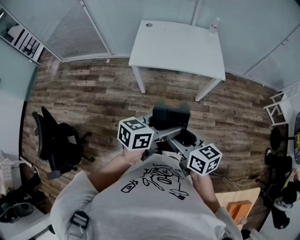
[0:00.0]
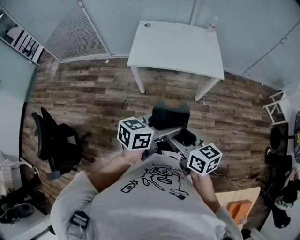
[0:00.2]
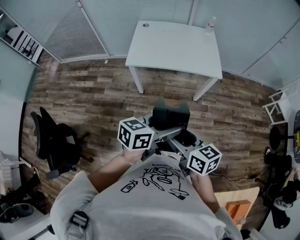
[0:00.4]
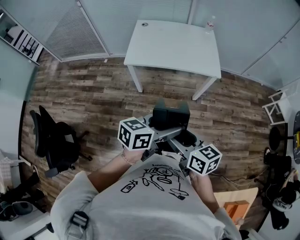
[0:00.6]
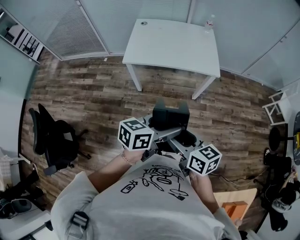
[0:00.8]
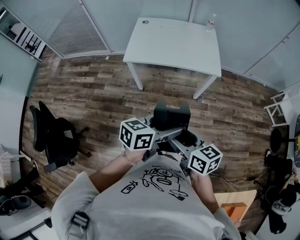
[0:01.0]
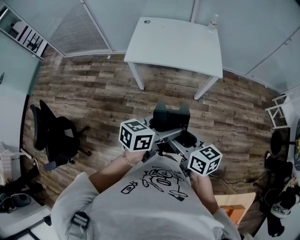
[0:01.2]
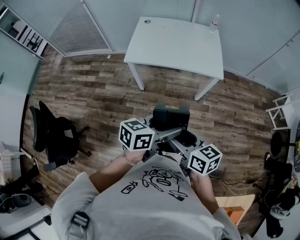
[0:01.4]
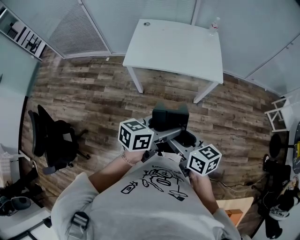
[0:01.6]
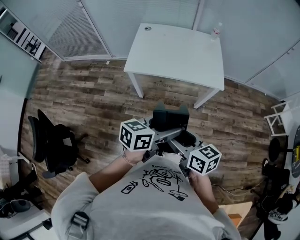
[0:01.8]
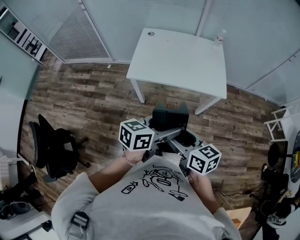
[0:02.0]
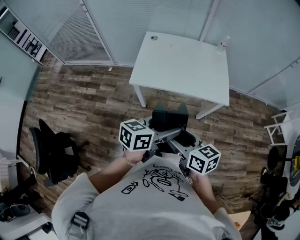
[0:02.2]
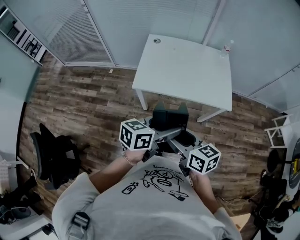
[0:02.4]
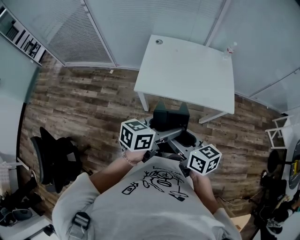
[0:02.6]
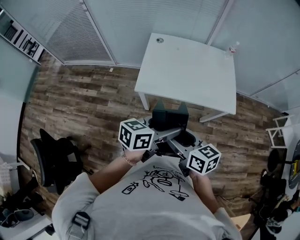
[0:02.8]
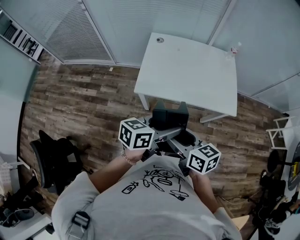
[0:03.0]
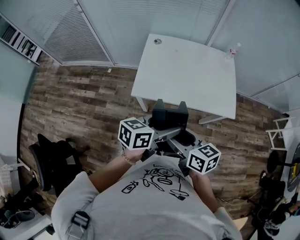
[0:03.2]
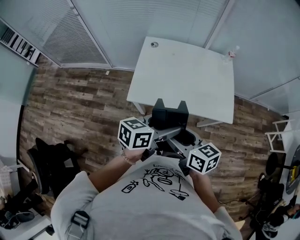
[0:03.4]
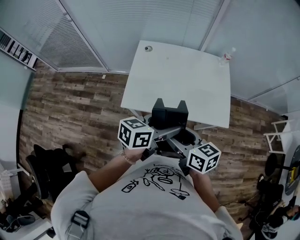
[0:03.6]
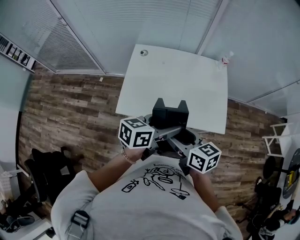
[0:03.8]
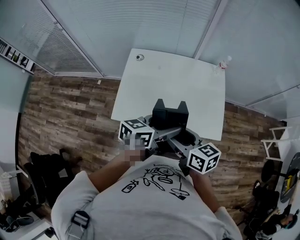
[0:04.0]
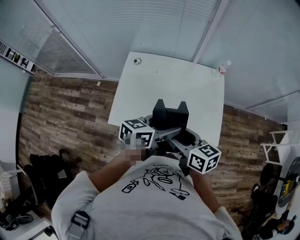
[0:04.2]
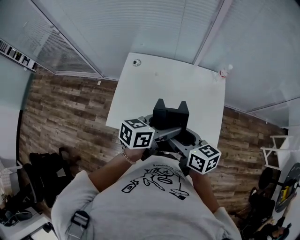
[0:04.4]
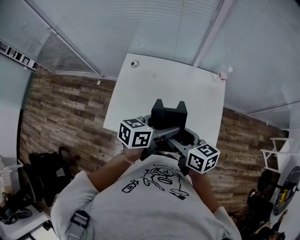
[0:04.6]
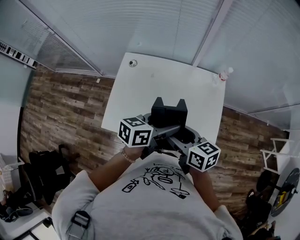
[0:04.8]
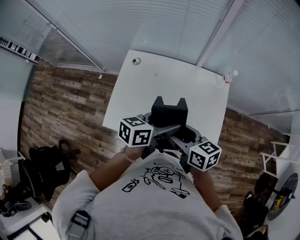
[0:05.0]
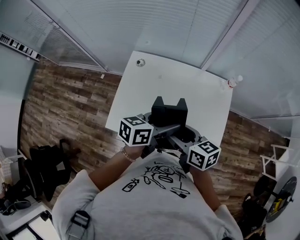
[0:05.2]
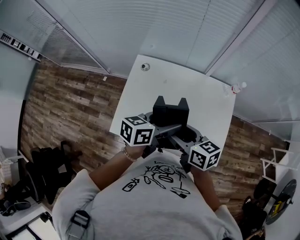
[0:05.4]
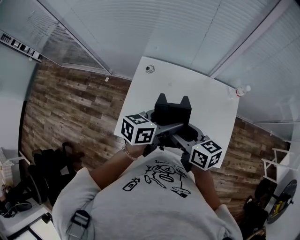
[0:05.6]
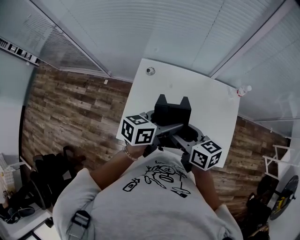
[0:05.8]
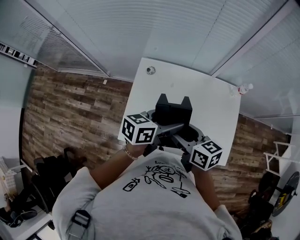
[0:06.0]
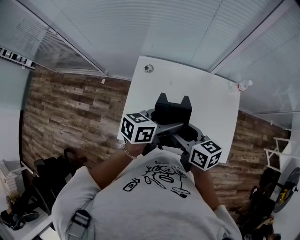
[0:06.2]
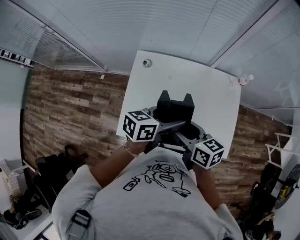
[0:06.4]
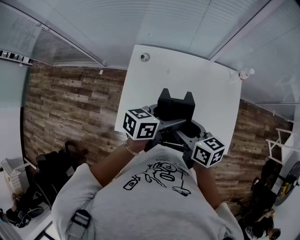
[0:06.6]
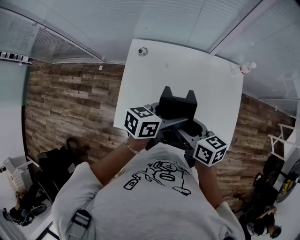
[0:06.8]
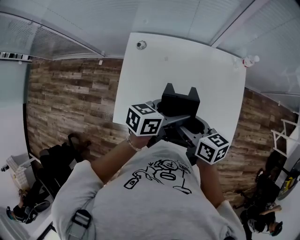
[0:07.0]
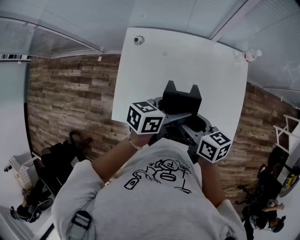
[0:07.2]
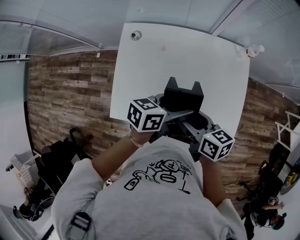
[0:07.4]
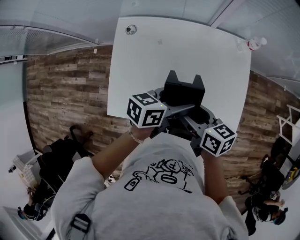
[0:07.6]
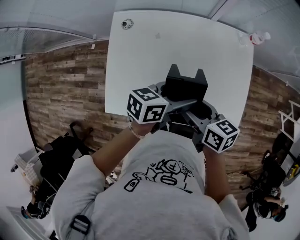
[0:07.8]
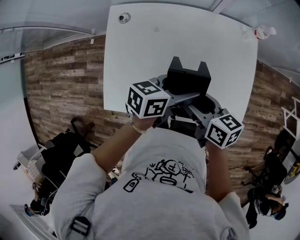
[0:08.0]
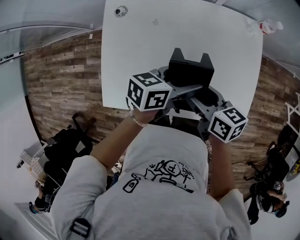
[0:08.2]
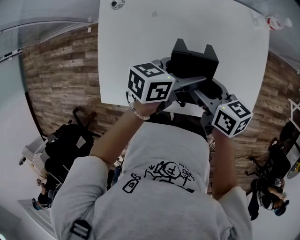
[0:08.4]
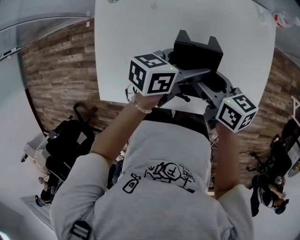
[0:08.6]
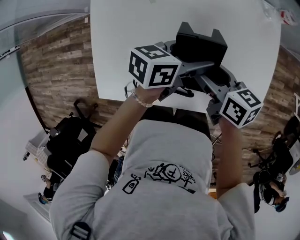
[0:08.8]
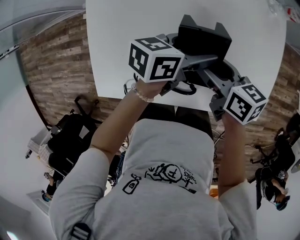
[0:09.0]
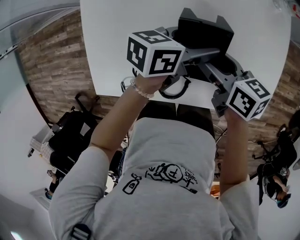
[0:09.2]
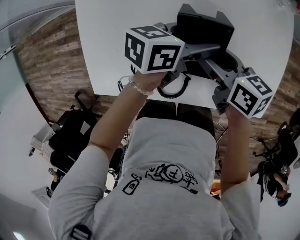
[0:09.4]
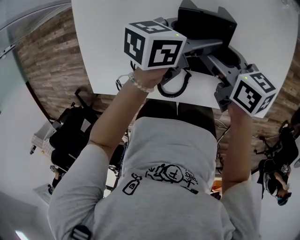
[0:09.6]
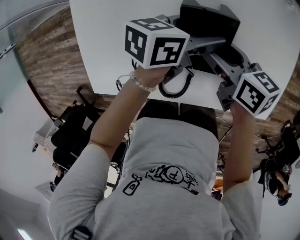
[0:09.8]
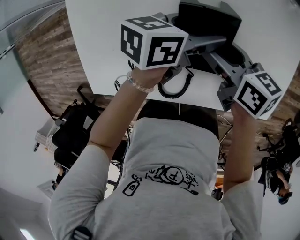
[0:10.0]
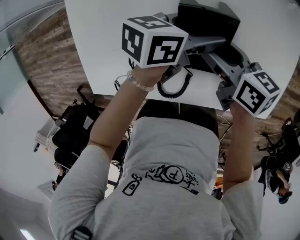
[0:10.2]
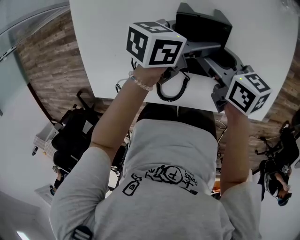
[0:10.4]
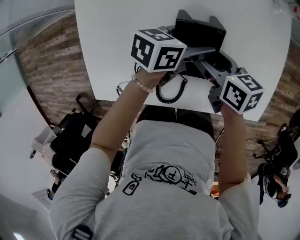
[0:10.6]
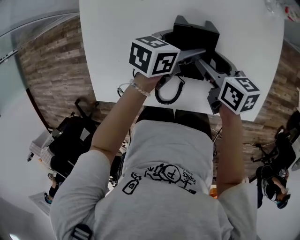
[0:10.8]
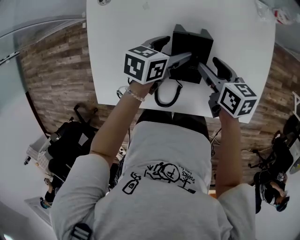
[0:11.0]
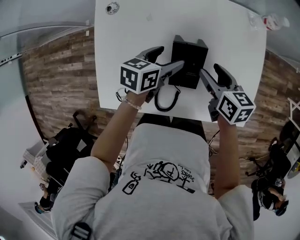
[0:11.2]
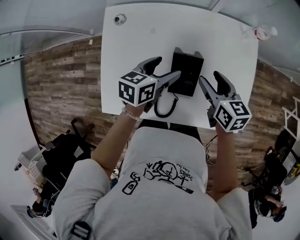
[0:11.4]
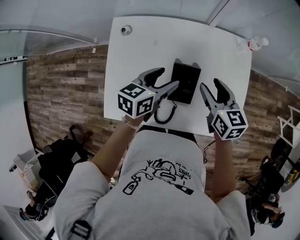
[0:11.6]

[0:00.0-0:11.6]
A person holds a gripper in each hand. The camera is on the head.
0:00.0 to 0:01.4: Both grippers travel together to the right, about 5 cm.
0:01.4 to 0:02.8: Both grippers travel together forward and to the left, approximately 30 cm.
0:02.8 to 0:04.4: The two grippers go some 35 cm forward and to the right.
0:04.4 to 0:05.8: The grippers both shift forward and to the left by some 15 cm.
0:05.8 to 0:07.2: The grippers both shift downward and to the right by about 10 cm.
0:07.2 to 0:08.8: The grippers both shift downward and forward by about 20 cm.
0:08.8 to 0:10.2: Both grippers move downward, roughly 10 cm.
0:10.2 to 0:11.6: Both grippers travel together upward, about 15 cm. The right gripper turns by about 30 degrees, while the left gripper turns by some 30 degrees.

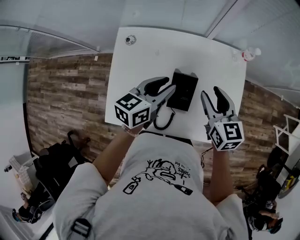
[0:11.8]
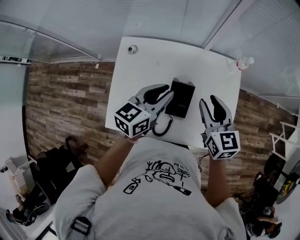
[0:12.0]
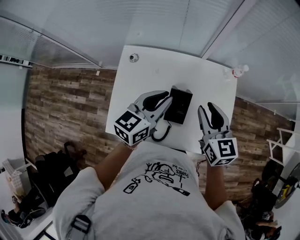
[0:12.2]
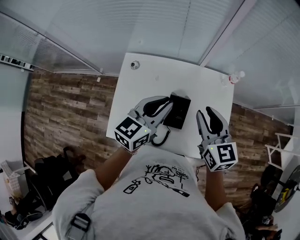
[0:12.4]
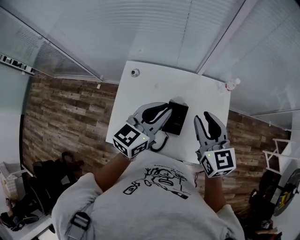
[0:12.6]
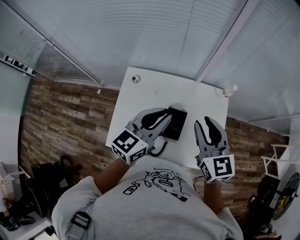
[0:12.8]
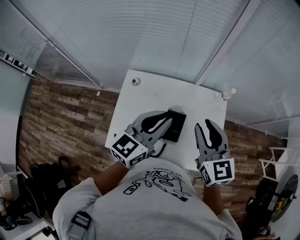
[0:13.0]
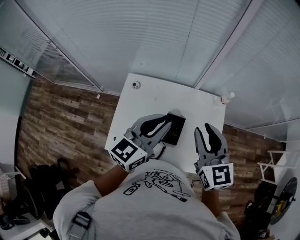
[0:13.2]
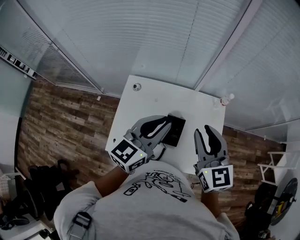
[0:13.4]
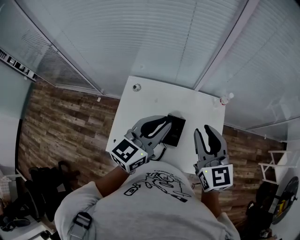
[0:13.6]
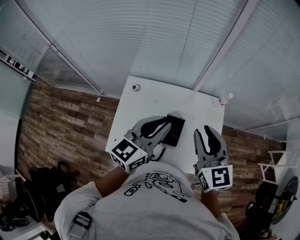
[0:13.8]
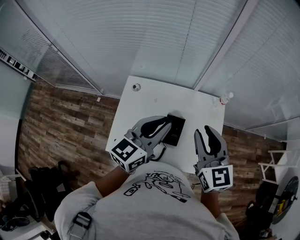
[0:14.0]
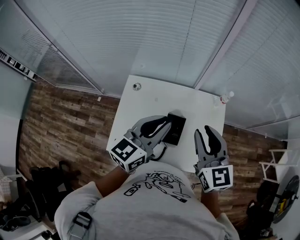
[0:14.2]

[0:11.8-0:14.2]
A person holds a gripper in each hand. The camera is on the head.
0:11.8 to 0:13.0: Both grippers travel together upward, roughly 20 cm. The left gripper turns by roughly 20 degrees.
0:13.0 to 0:14.2: The grippers move only a little.

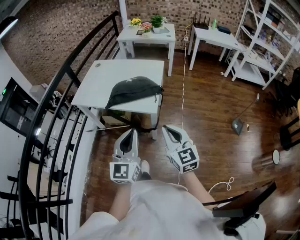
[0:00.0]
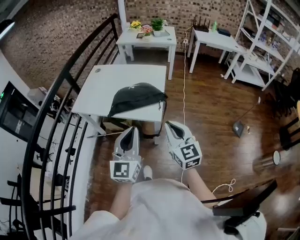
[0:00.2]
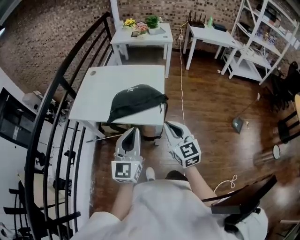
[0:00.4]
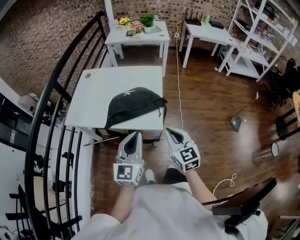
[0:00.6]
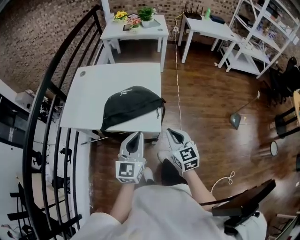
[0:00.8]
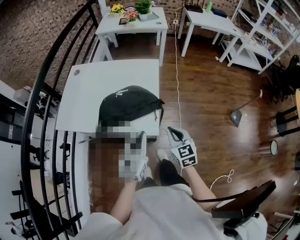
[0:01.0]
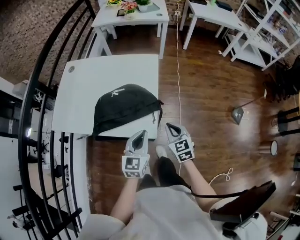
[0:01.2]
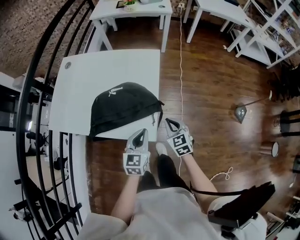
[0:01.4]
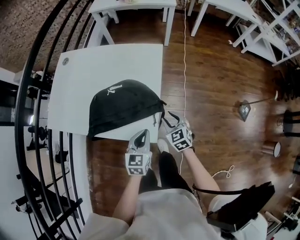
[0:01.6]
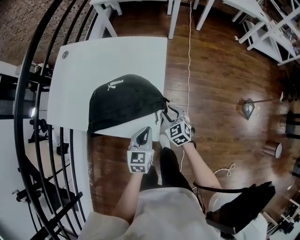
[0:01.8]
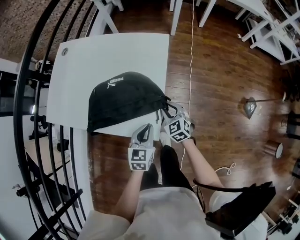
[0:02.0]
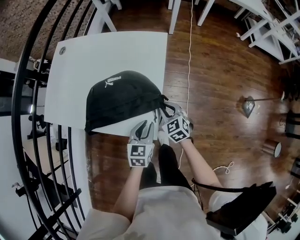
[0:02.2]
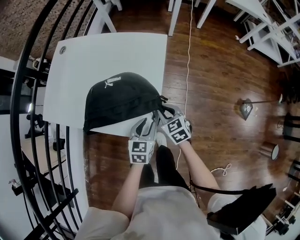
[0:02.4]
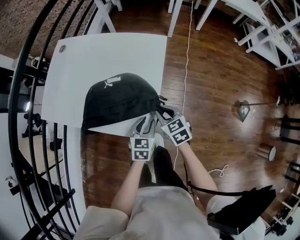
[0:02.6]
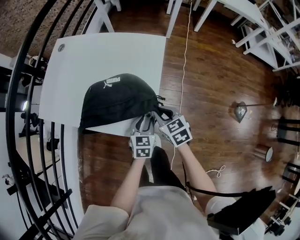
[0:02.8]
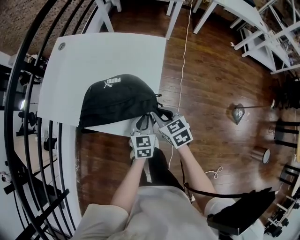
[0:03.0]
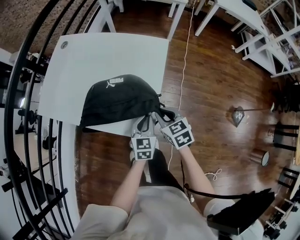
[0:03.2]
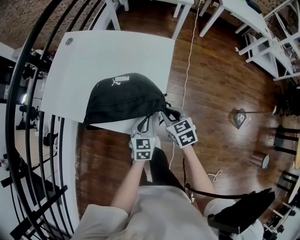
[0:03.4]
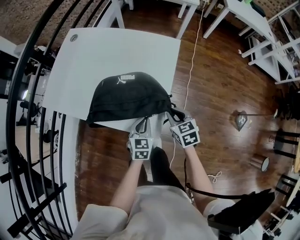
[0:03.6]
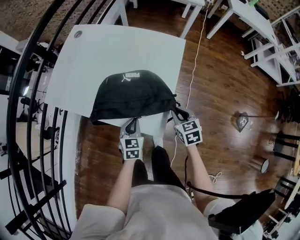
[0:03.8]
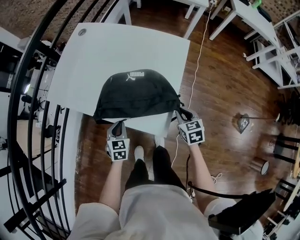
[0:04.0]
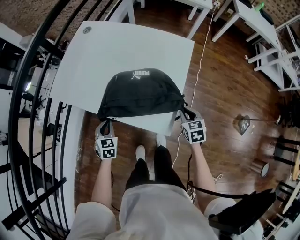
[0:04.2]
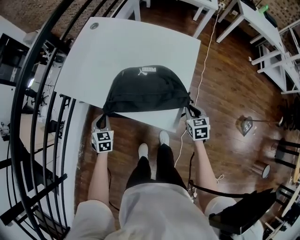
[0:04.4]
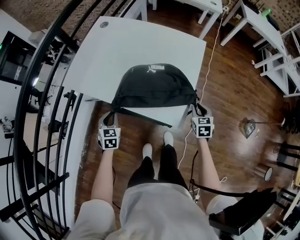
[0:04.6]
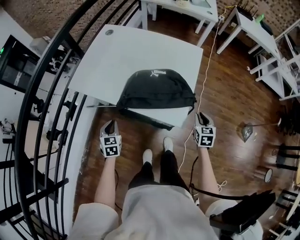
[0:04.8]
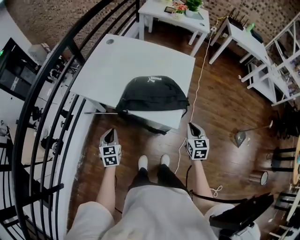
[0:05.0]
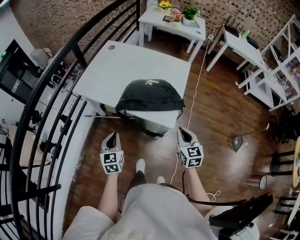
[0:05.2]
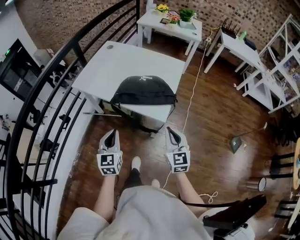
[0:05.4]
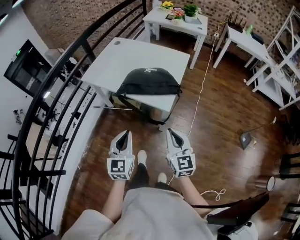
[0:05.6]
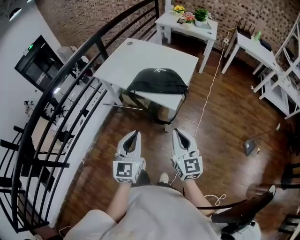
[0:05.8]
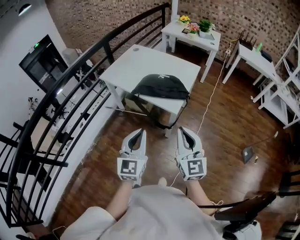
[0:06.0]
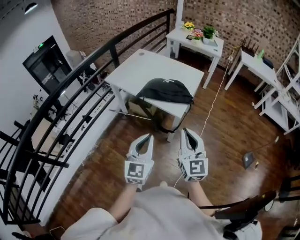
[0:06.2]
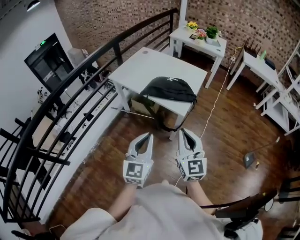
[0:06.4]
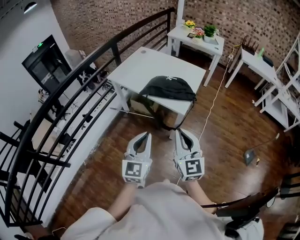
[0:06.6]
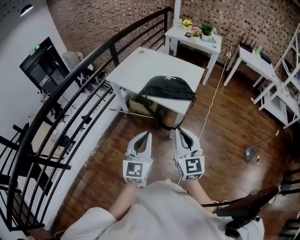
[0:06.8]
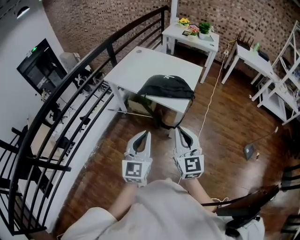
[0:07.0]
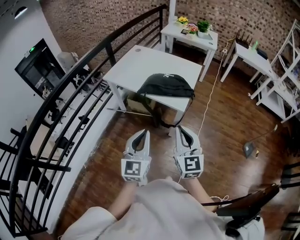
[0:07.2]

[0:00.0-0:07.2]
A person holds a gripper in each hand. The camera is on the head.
0:00.0 to 0:01.4: The grippers both shift forward and downward by approximately 40 cm. The left gripper rotates approximately 30 degrees; the right gripper turns by approximately 30 degrees.
0:01.4 to 0:02.8: The right gripper moves forward, some 5 cm, and goes downward and returns, some 10 cm each way. Meanwhile the left gripper goes about 10 cm downward and forward, and opens its fingers.
0:02.8 to 0:04.4: The left gripper moves to the left, about 35 cm, swivels approximately 30 degrees, and closes its fingers, while the right gripper moves about 5 cm.
0:04.4 to 0:05.8: The right gripper travels backward and upward by approximately 50 cm, and angles its fingers upward, by roughly 40 degrees. The left gripper travels backward, upward and to the right by about 50 cm, and tips its fingers upward by approximately 40 degrees.
0:05.8 to 0:07.2: The two grippers go about 5 cm to the left.

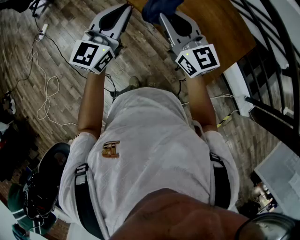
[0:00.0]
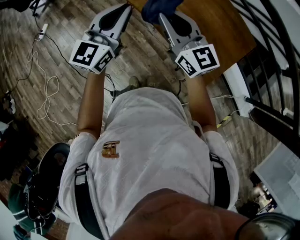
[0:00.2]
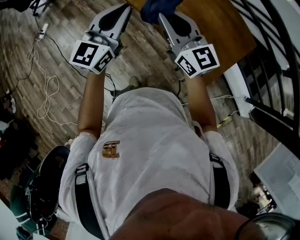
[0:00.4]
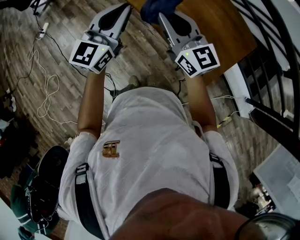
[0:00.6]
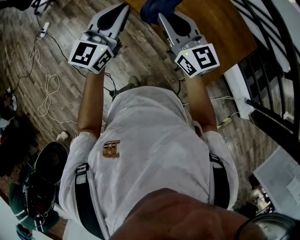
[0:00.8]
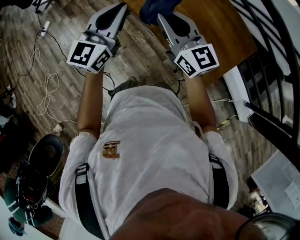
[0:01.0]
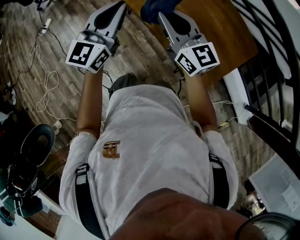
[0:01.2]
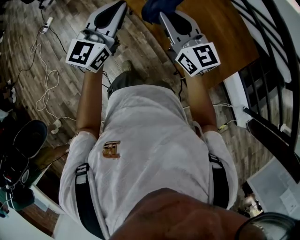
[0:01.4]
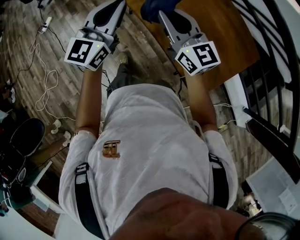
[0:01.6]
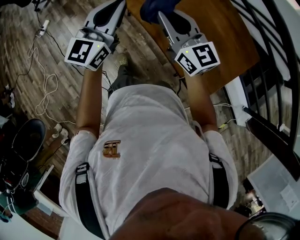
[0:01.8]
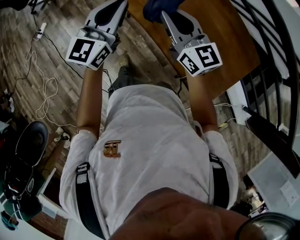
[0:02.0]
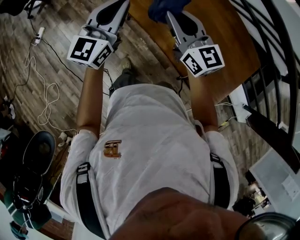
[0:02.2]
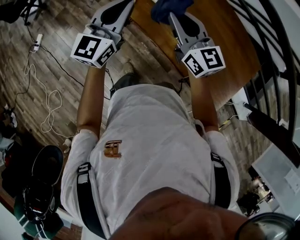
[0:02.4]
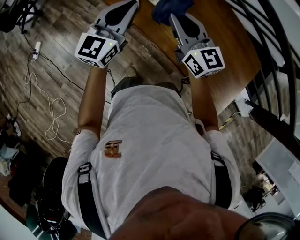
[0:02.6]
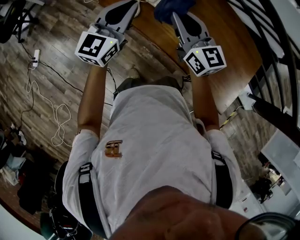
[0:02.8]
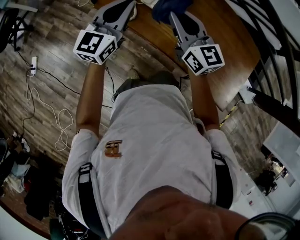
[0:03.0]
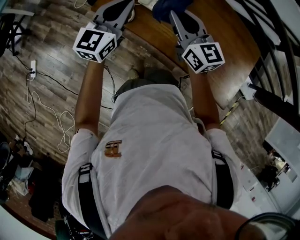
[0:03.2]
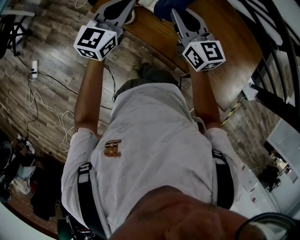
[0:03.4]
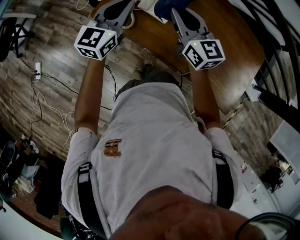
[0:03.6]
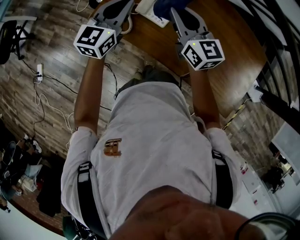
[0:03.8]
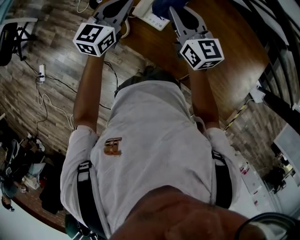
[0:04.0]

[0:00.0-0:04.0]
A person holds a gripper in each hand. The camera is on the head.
0:00.0 to 0:01.4: The right gripper goes about 15 cm forward and downward. Meanwhile the left gripper shifts roughly 15 cm forward.
0:01.4 to 0:02.6: The left gripper shifts some 20 cm forward and to the left. Meanwhile the right gripper travels to the left and forward by some 20 cm.
0:02.6 to 0:04.0: Both grippers move forward, roughly 30 cm.
